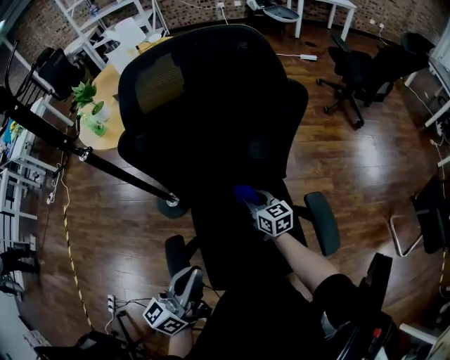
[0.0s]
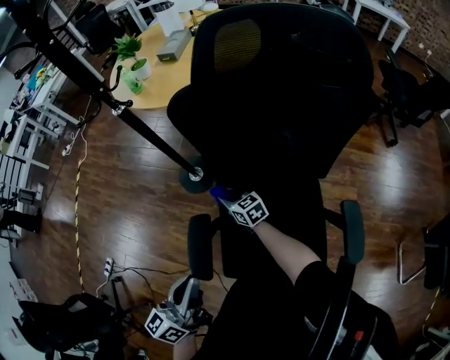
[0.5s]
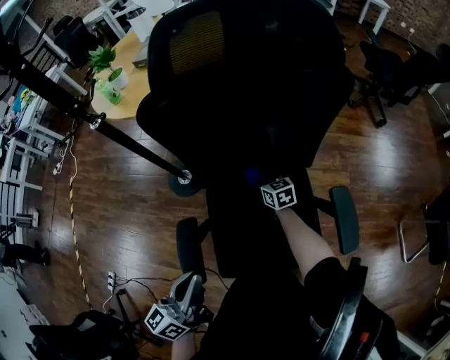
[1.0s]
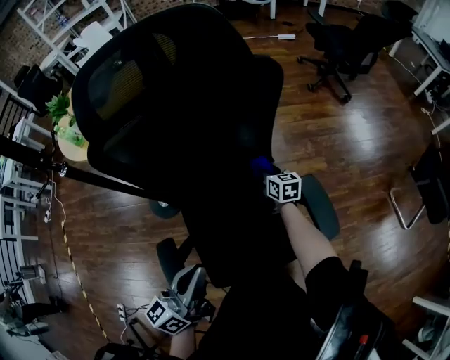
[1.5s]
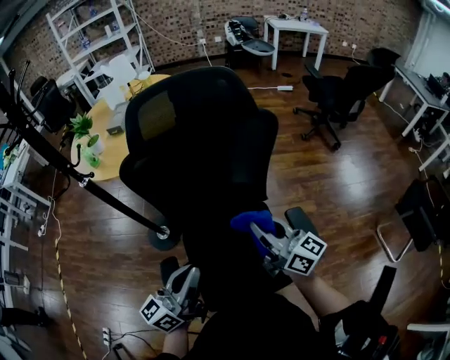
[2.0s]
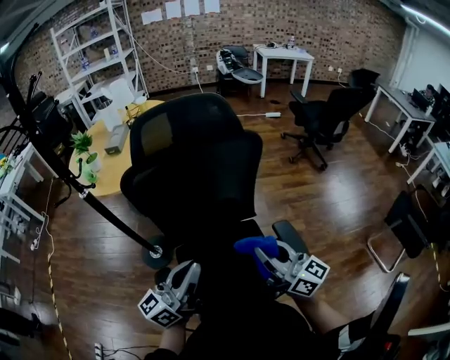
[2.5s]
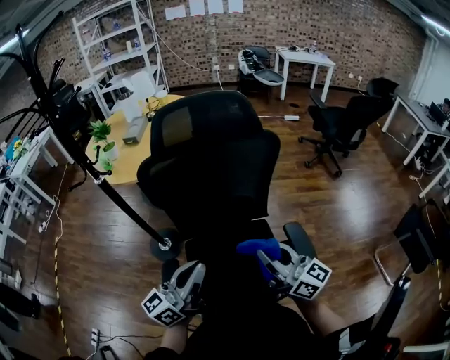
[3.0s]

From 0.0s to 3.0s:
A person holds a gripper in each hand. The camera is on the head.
From 0.0s to 1.5s: The right gripper swivels approximately 20 degrees.
From 1.5s to 3.0s: The right gripper heads upward and backward, covering some 40 cm, and angles its fingers upward, by some 40 degrees, while the left gripper moves upward, some 10 cm.

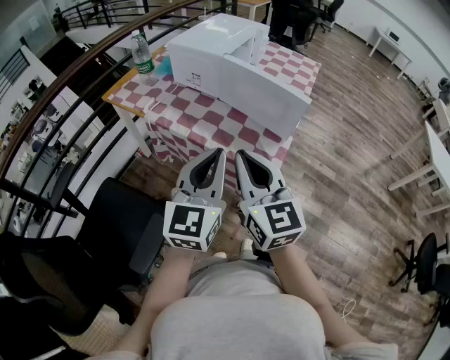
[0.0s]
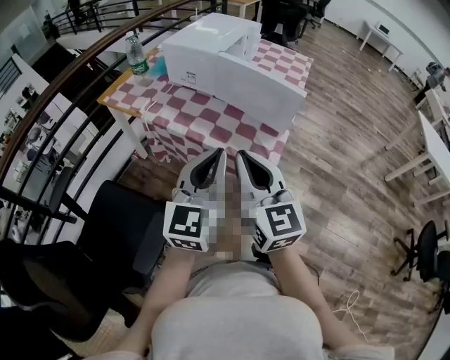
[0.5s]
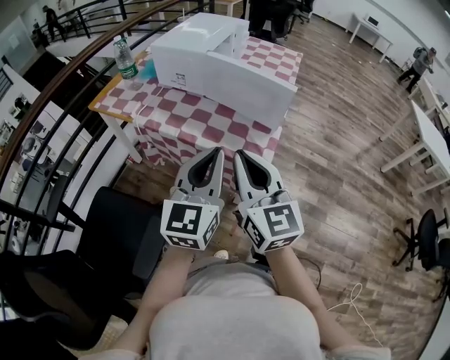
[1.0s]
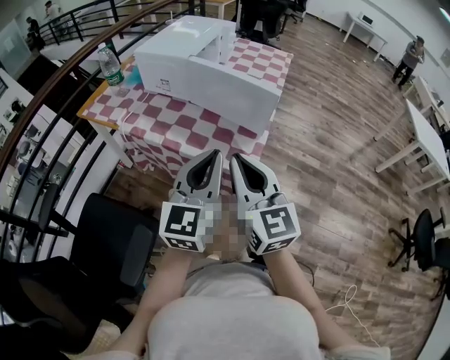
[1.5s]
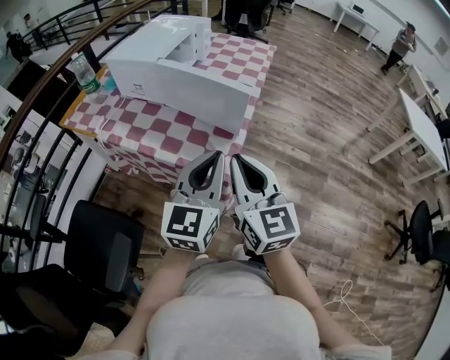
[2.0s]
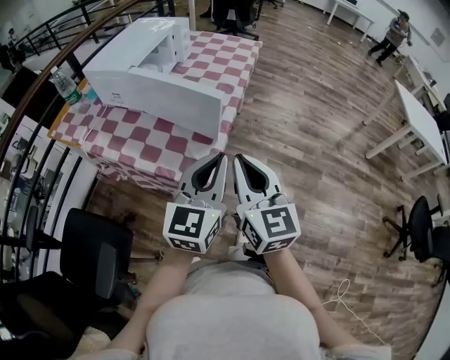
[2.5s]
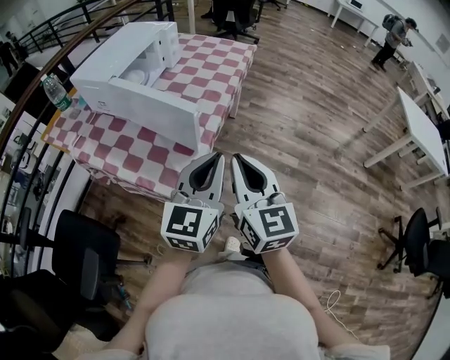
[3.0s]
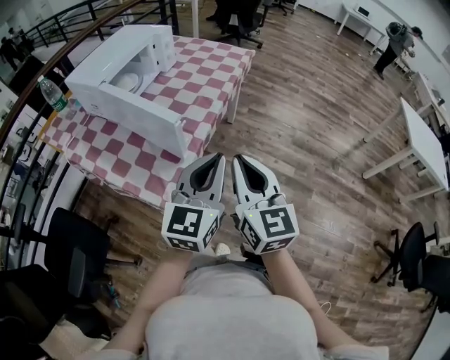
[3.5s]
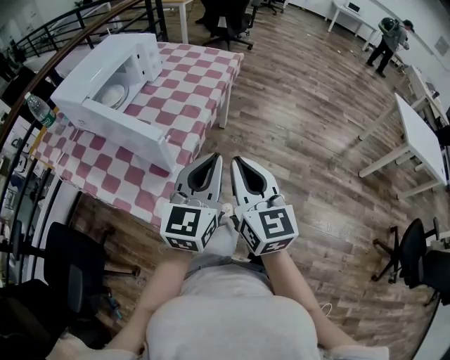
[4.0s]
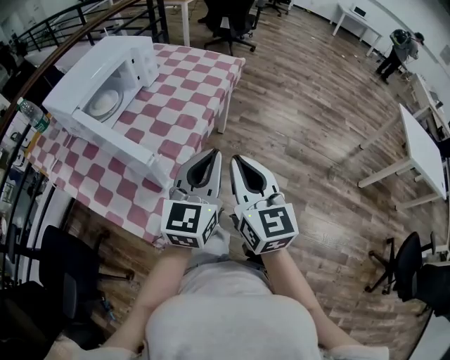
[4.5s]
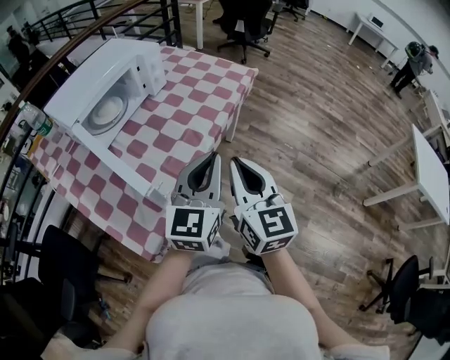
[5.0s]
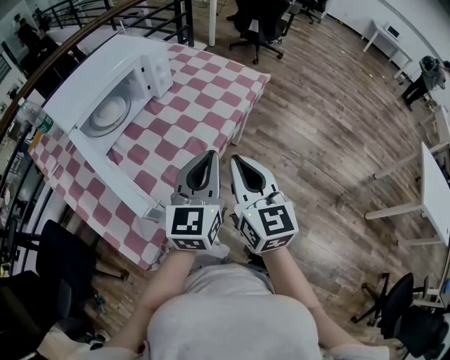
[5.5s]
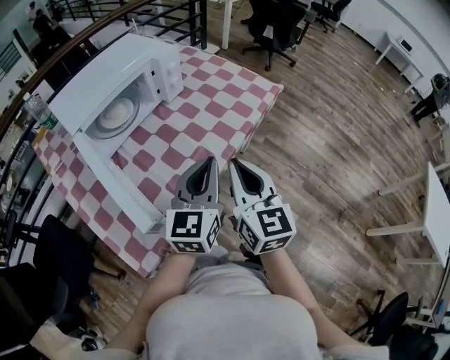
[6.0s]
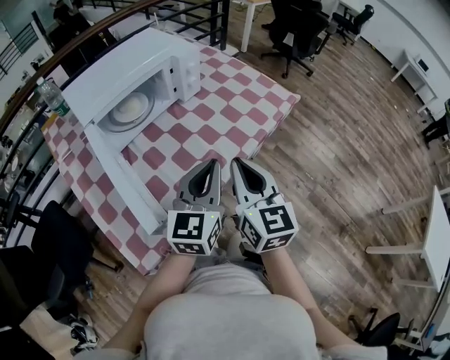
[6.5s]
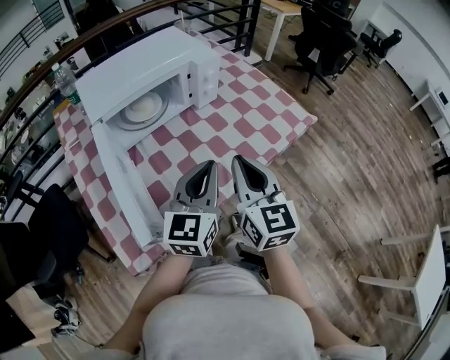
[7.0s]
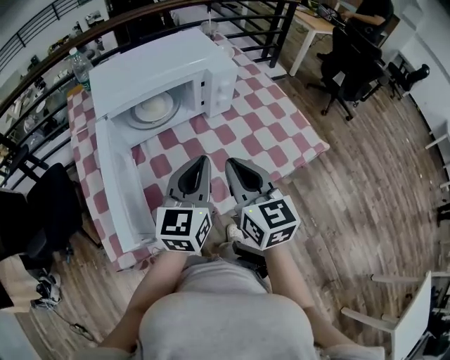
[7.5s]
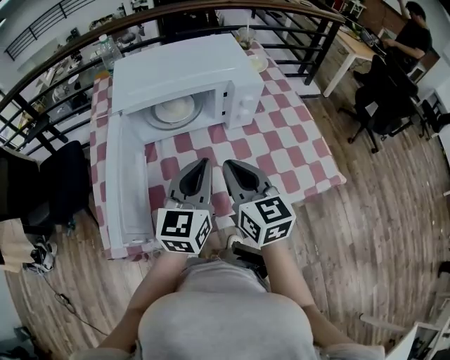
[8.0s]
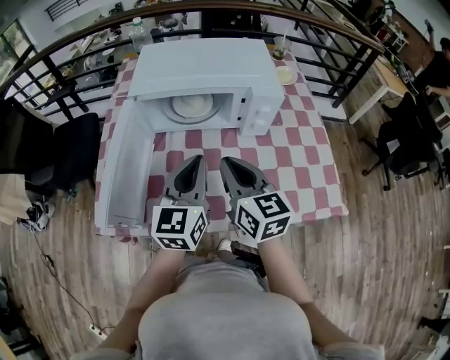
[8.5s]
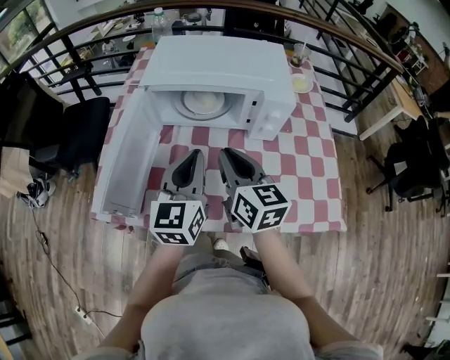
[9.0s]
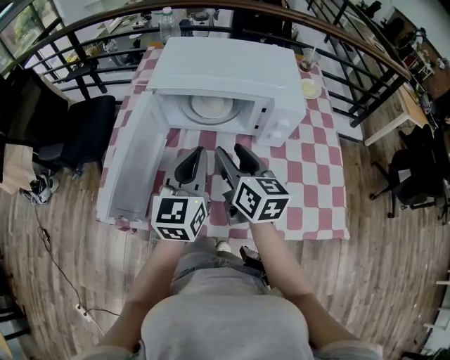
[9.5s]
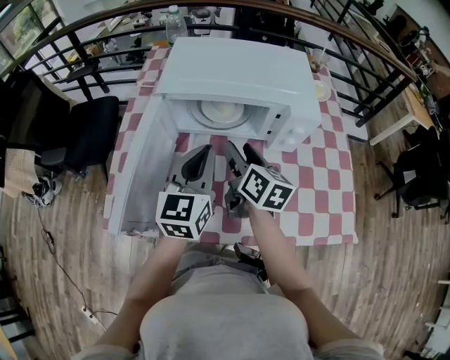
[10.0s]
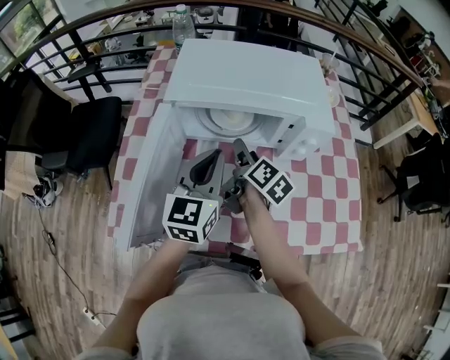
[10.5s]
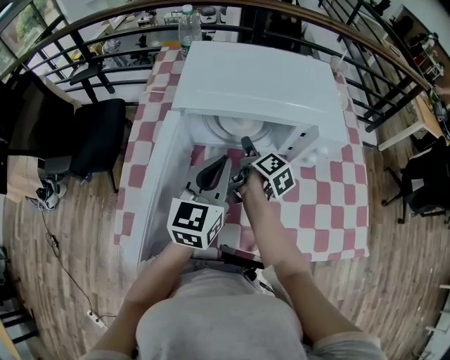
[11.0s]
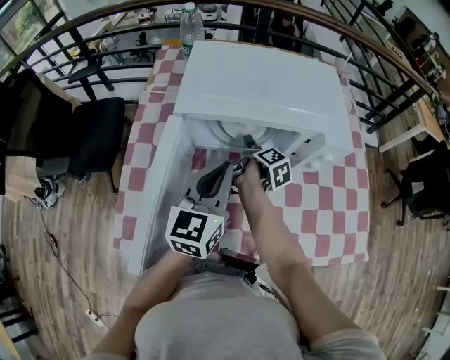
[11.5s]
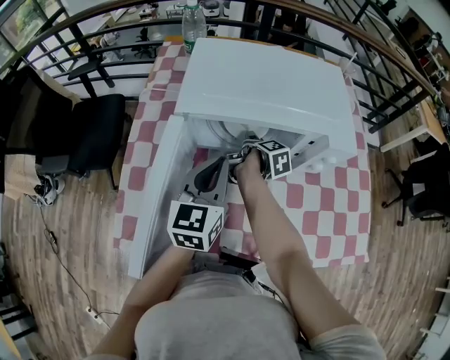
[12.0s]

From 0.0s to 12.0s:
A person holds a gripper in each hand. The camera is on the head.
From 0.0s to 2.0s: The two grippers go approximately 15 cm to the right.
From 2.0s to 4.0s: Both grippers move to the right and forward, roughly 30 cm.
From 4.0s to 6.0s: Both grippers move forward, some 25 cm. The left gripper rotates some 20 degrees.
From 6.0s to 8.0s: The right gripper ends up roughly 20 cm from where it was, and rotates approximately 40 degrees. The left gripper moves roughly 15 cm, and changes its angle by about 40 degrees.
From 8.0s to 10.0s: The left gripper heads forward and to the left, covering about 10 cm. Meanwhile the right gripper heads forward and downward, covering approximately 15 cm, rotates about 30 degrees, and opens its fingers.
From 10.0s to 12.0s: The right gripper heads downward and forward, covering roughly 20 cm, and rotates around the line of its fingers by some 50 degrees, clockwise from behind, while the left gripper is displaced forward by about 5 cm.

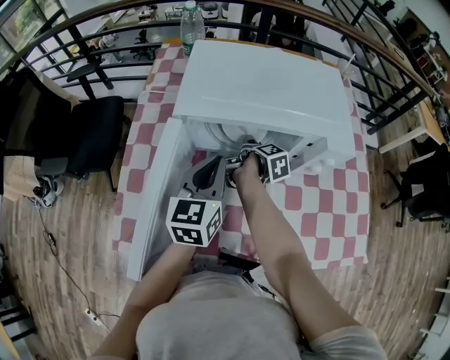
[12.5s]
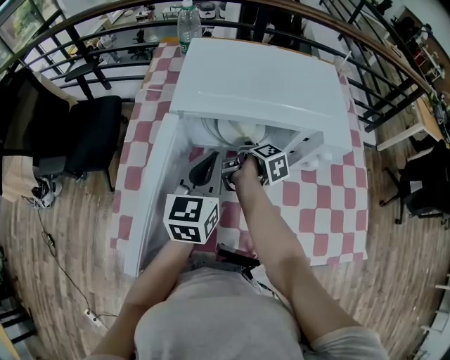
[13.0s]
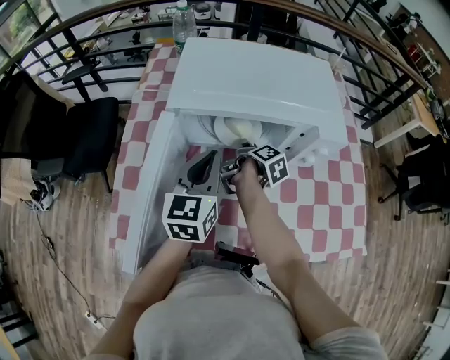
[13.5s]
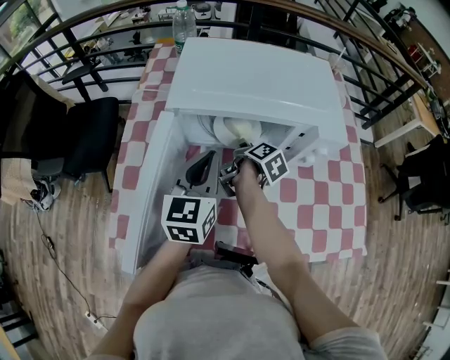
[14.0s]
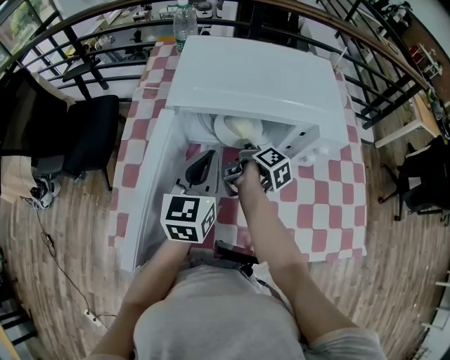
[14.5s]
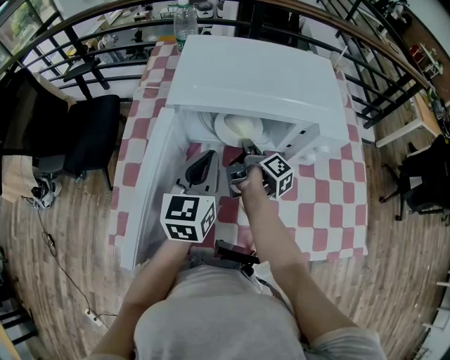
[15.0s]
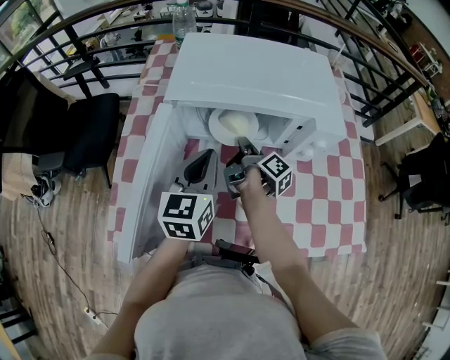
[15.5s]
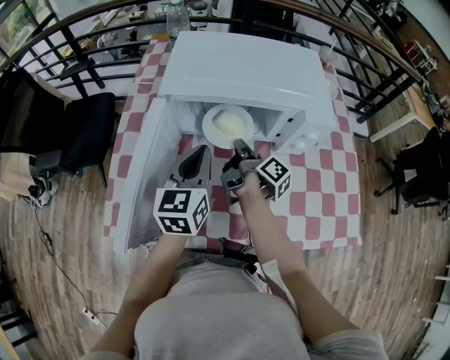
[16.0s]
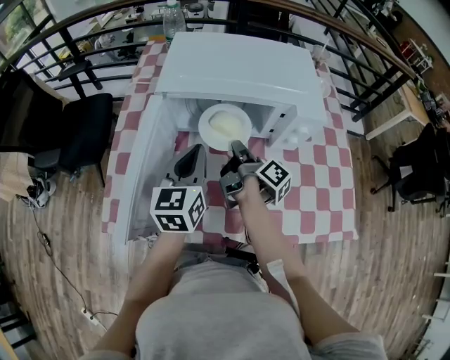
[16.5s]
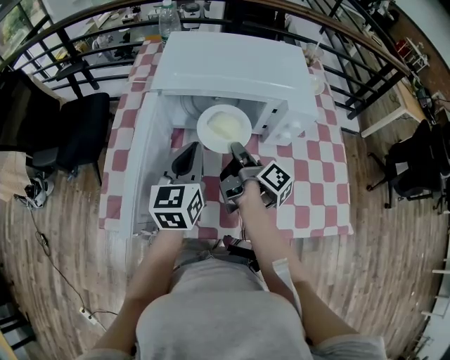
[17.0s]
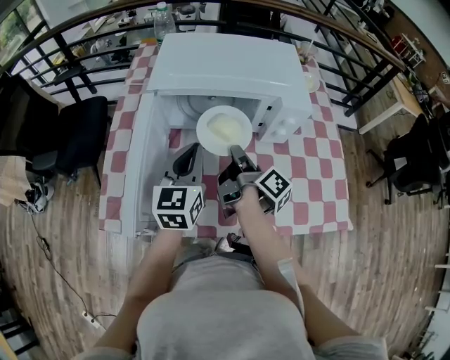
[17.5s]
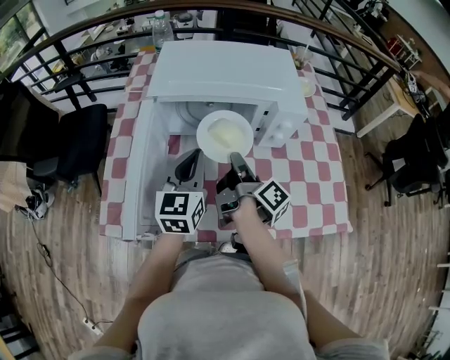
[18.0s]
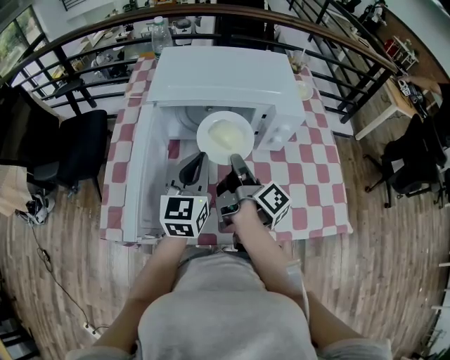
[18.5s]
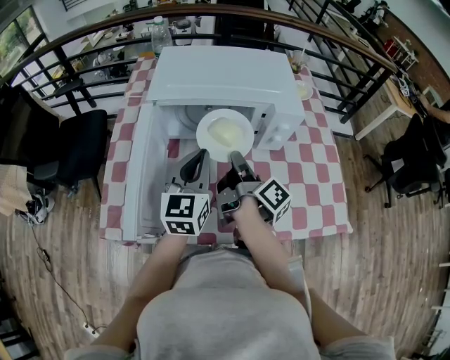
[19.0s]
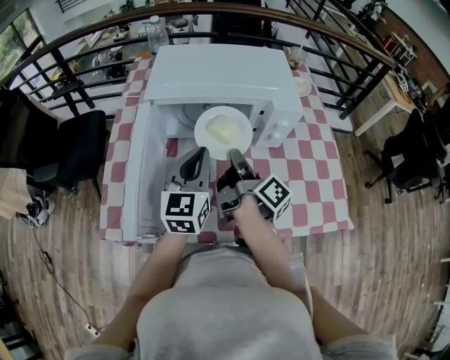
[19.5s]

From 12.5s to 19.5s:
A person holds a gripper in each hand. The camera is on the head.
From 12.5s to 14.5s: The right gripper closes up.
From 14.5s to 16.0s: The right gripper moves about 5 cm.
From 16.0s to 17.5s: The right gripper goes approximately 10 cm backward and upward.
From 17.5s to 19.5s: The grippers make only small movements.

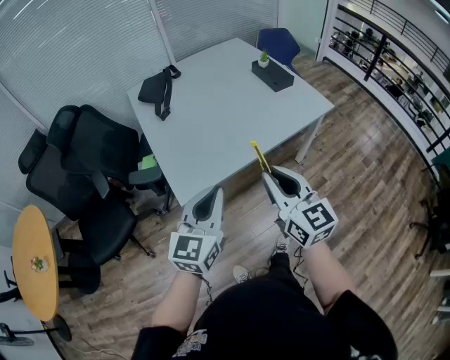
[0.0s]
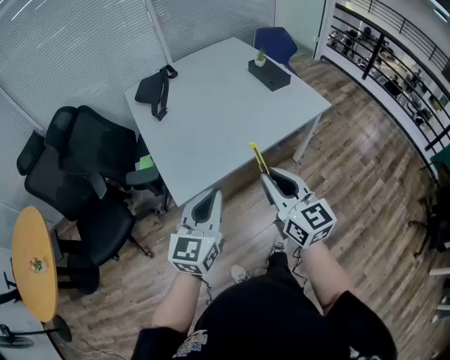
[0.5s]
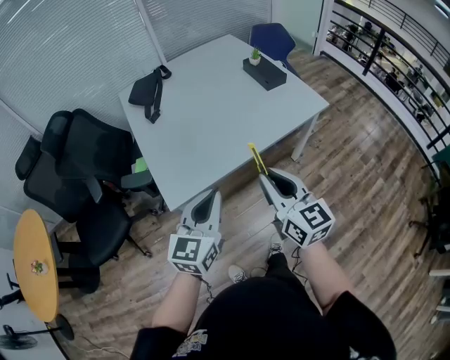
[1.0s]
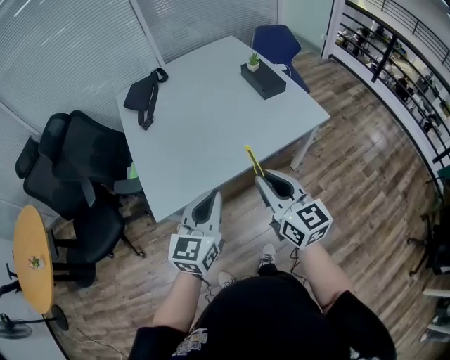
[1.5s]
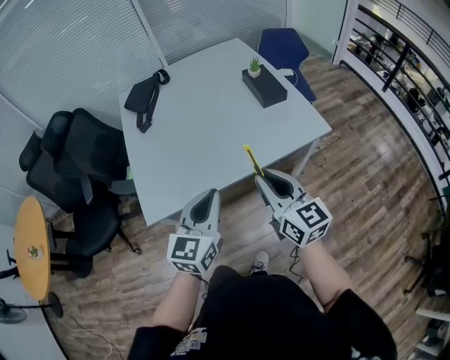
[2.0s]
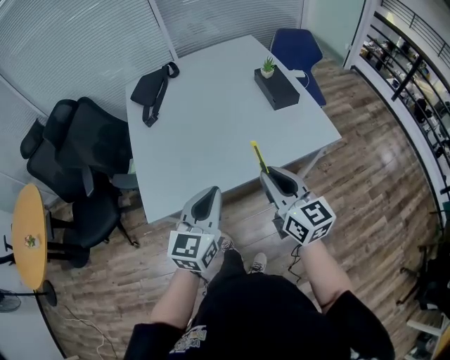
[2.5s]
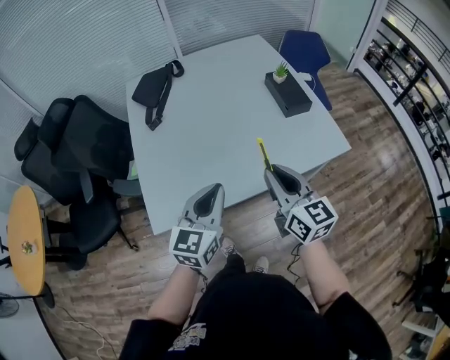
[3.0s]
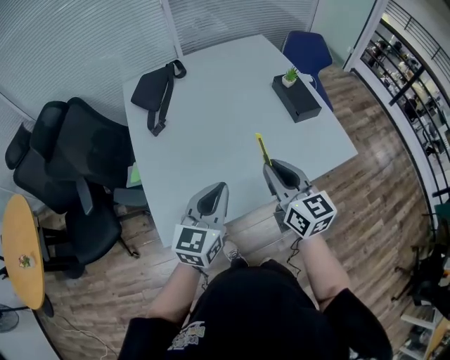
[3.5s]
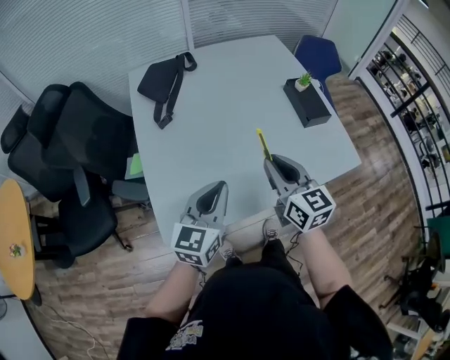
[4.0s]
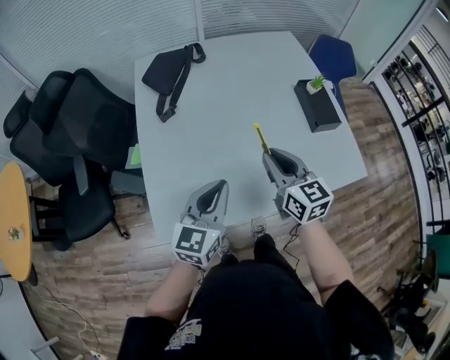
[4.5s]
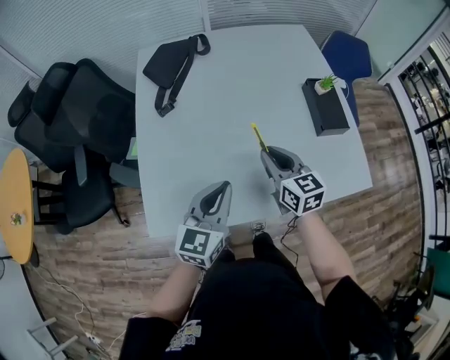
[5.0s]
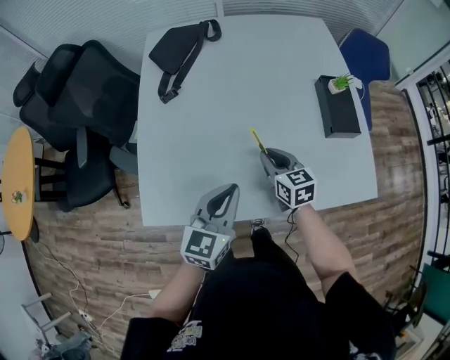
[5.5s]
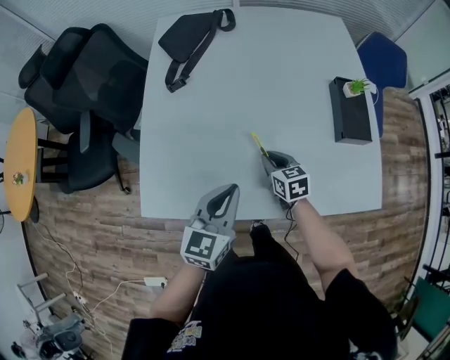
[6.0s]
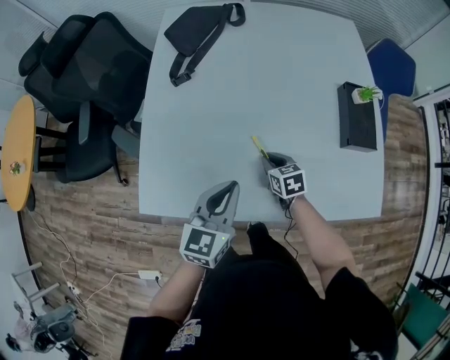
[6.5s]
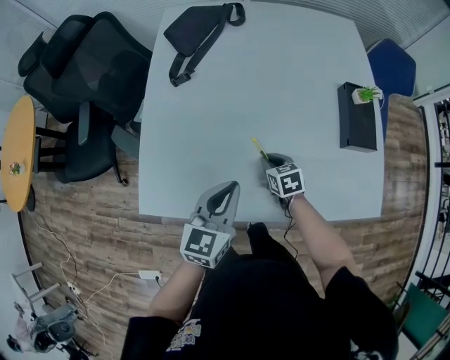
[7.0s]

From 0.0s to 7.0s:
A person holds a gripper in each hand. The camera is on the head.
From 0.0s to 2.0s: The grippers both shift to the right and forward by about 20 cm.
From 2.0s to 3.5s: Both grippers move forward and to the left, about 20 cm.
From 3.5s to 5.0s: The right gripper goes roughly 15 cm forward and downward; the left gripper is displaced forward by about 5 cm.
From 5.0s to 7.0s: The left gripper goes some 5 cm downward. Meanwhile the right gripper goes approximately 20 cm downward, and tips its fingers downward by some 30 degrees.
